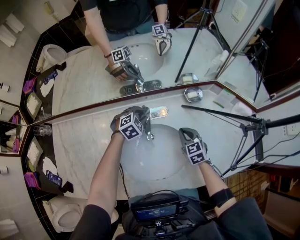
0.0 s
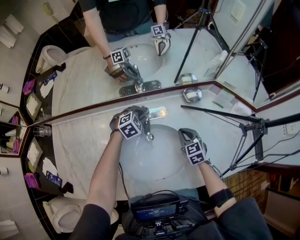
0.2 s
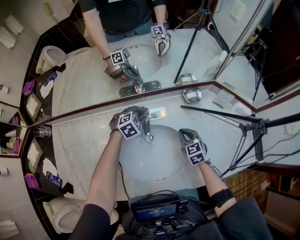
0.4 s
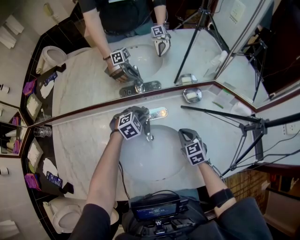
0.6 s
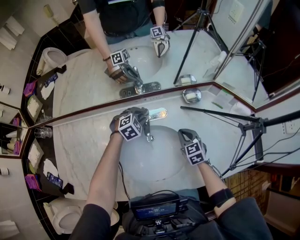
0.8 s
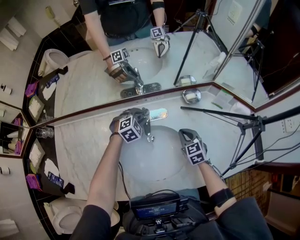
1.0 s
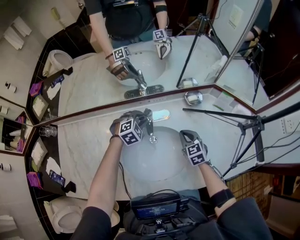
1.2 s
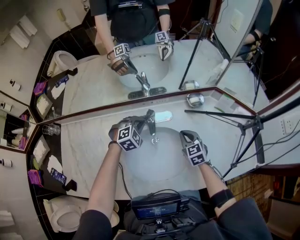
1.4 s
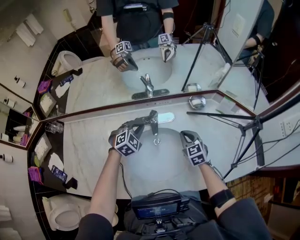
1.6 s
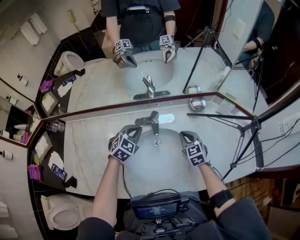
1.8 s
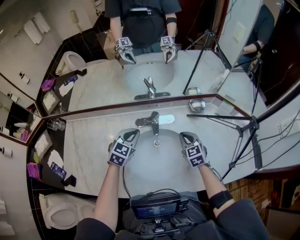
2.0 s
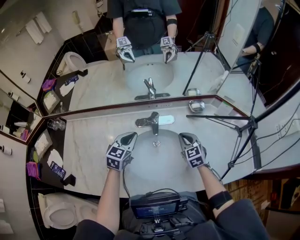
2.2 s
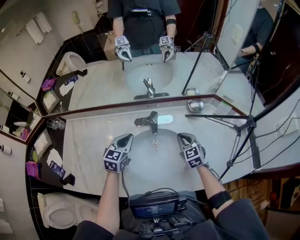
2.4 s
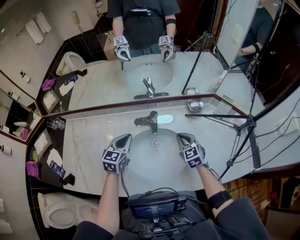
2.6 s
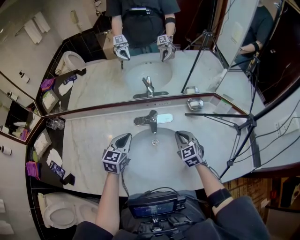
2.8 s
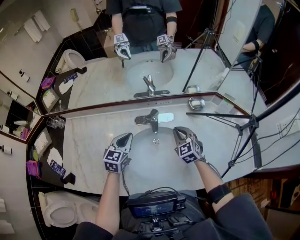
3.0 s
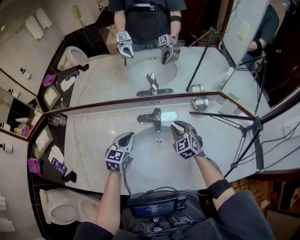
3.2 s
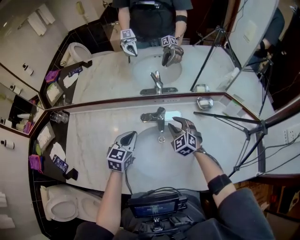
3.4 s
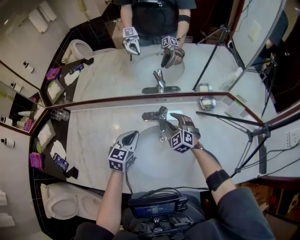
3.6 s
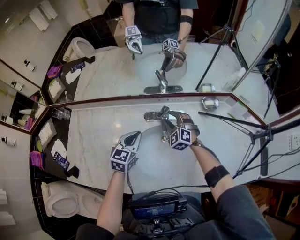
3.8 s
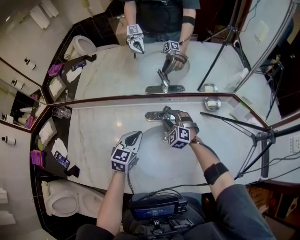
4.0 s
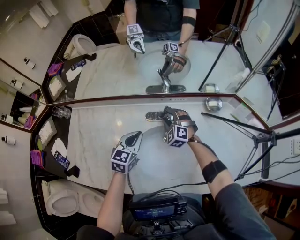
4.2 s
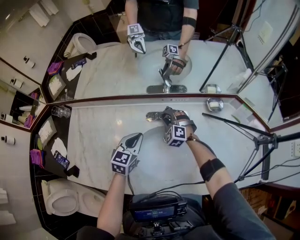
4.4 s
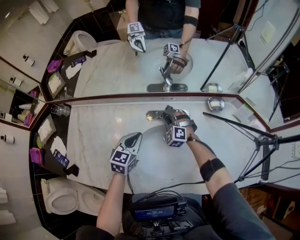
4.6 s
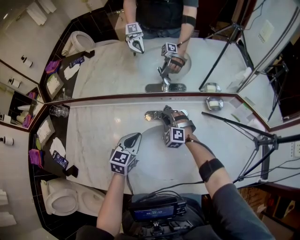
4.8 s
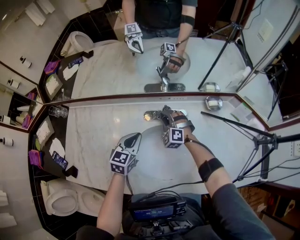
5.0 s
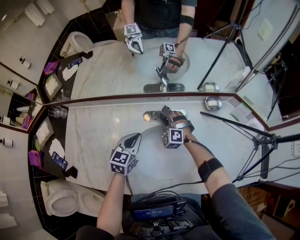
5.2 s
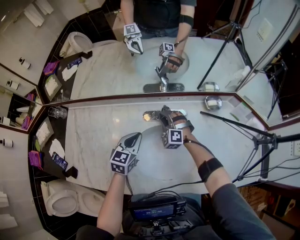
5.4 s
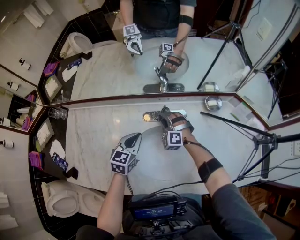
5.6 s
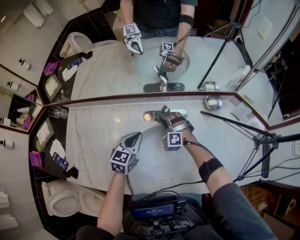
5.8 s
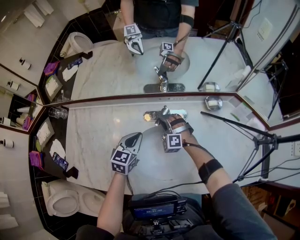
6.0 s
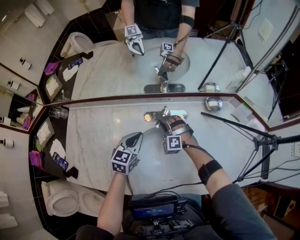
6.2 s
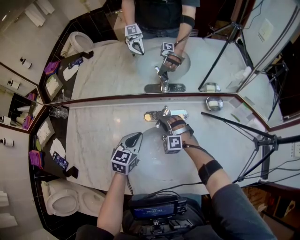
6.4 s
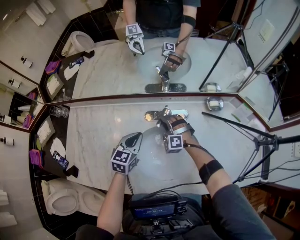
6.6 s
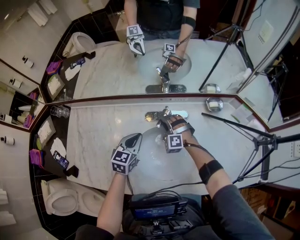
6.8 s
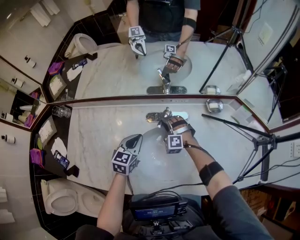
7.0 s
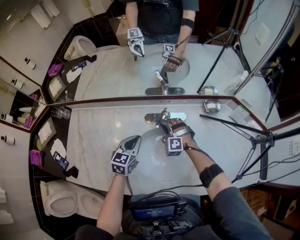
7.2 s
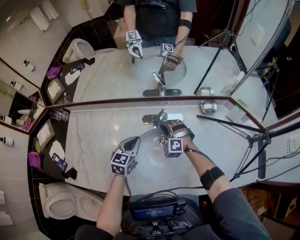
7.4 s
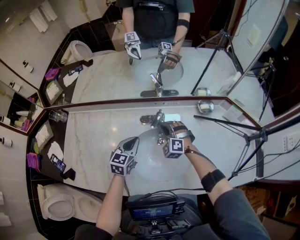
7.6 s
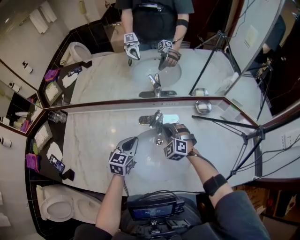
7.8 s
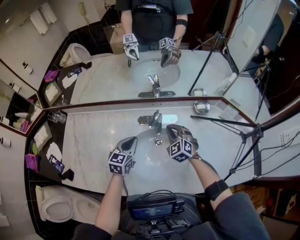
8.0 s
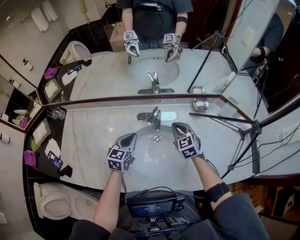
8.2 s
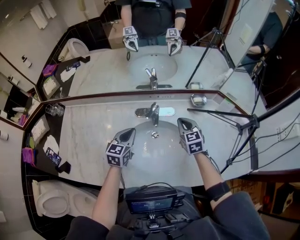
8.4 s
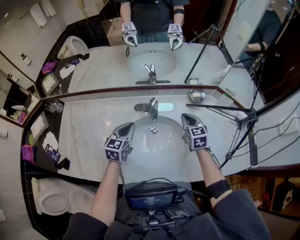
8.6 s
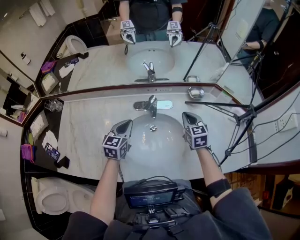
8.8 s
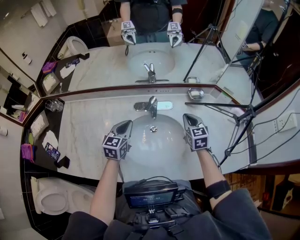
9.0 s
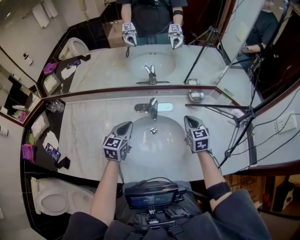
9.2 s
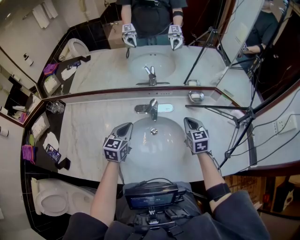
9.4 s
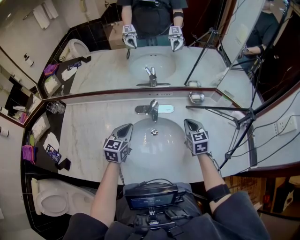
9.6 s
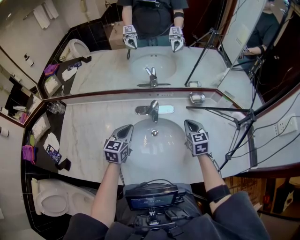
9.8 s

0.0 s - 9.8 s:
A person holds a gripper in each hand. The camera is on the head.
0.0 s - 1.4 s: The left gripper moves upward, approximately 5 cm.
1.4 s - 2.8 s: The left gripper shifts some 15 cm backward, upward and to the left, and twists roughly 50 degrees counterclockwise, seen from behind. Meanwhile the right gripper shifts by roughly 5 cm.
2.8 s - 4.2 s: The right gripper shifts approximately 20 cm to the left, forward and downward, changes its angle by approximately 40 degrees, and opens.
4.2 s - 5.6 s: The right gripper closes.
5.6 s - 7.0 s: The grippers make only small movements.
7.0 s - 8.4 s: The right gripper heads to the right, upward and backward, covering approximately 20 cm, and rotates around the line of its fingers by about 70 degrees, clockwise from behind.
8.4 s - 9.8 s: The right gripper shifts by about 5 cm.

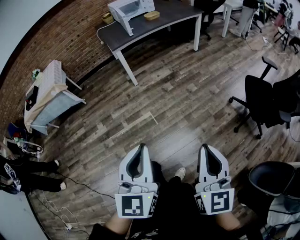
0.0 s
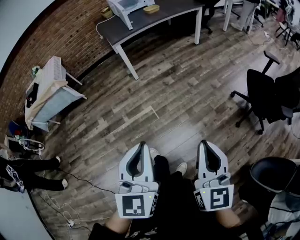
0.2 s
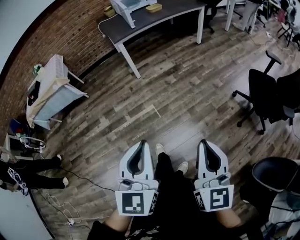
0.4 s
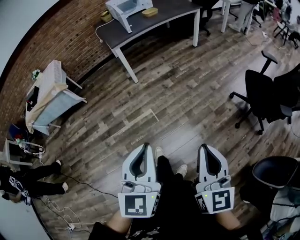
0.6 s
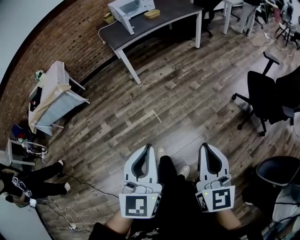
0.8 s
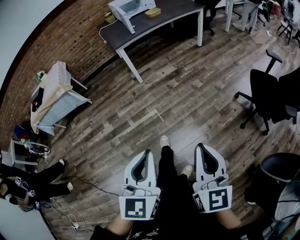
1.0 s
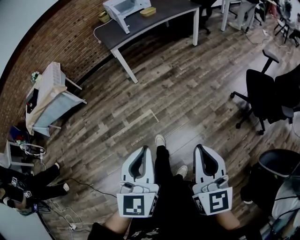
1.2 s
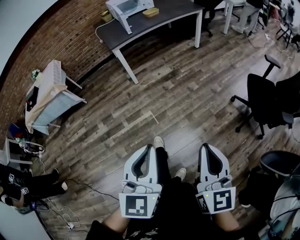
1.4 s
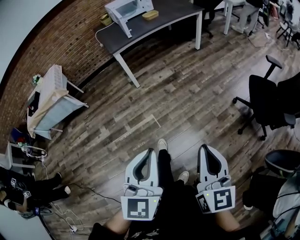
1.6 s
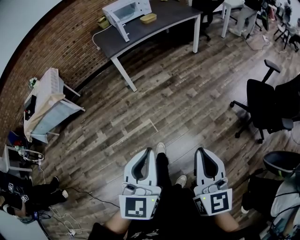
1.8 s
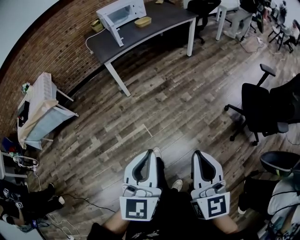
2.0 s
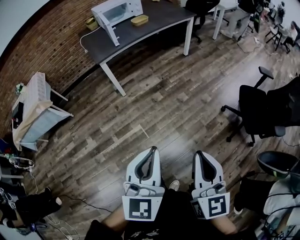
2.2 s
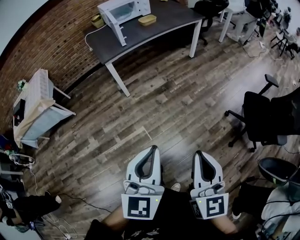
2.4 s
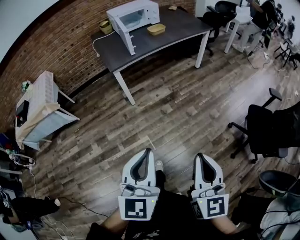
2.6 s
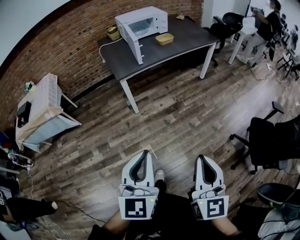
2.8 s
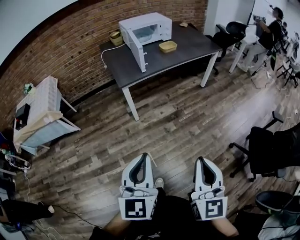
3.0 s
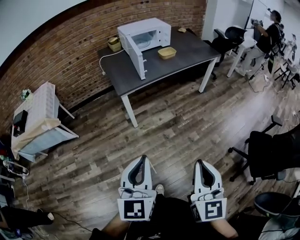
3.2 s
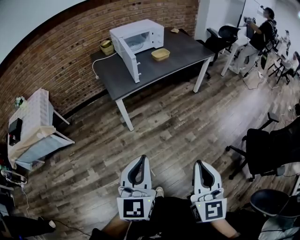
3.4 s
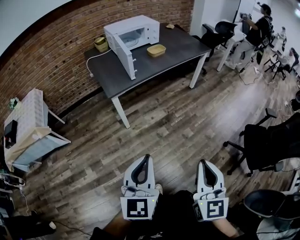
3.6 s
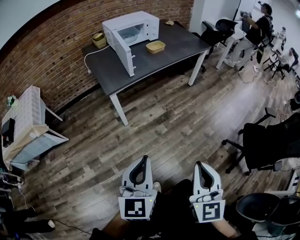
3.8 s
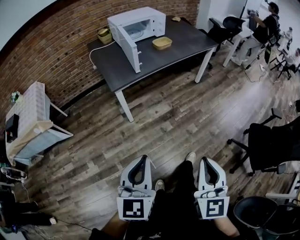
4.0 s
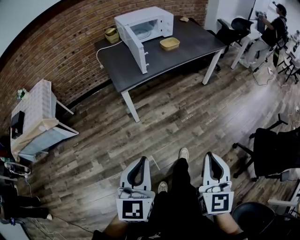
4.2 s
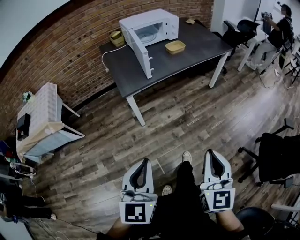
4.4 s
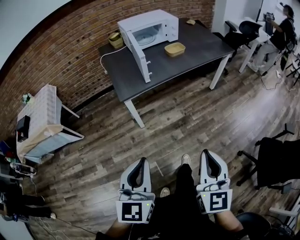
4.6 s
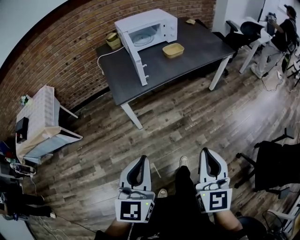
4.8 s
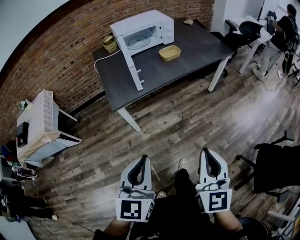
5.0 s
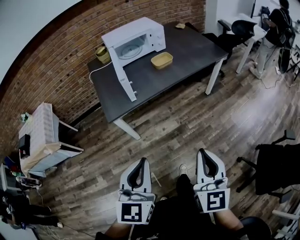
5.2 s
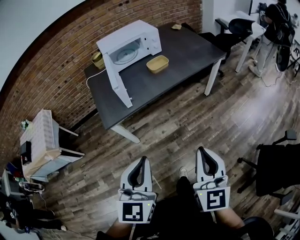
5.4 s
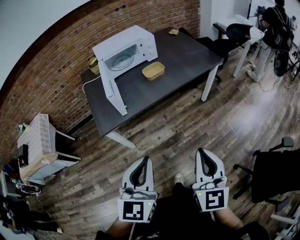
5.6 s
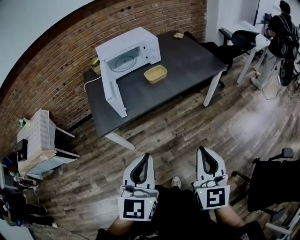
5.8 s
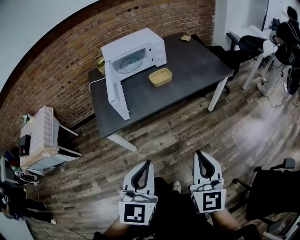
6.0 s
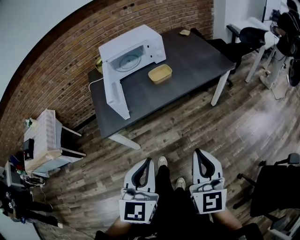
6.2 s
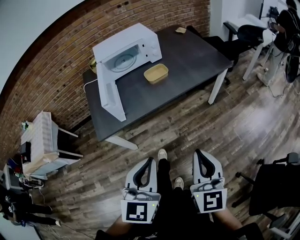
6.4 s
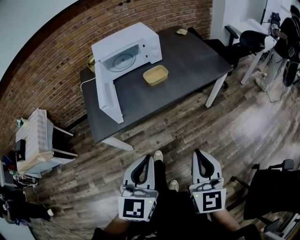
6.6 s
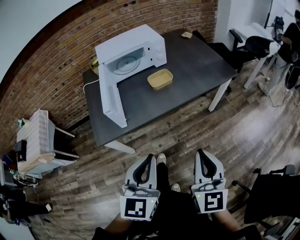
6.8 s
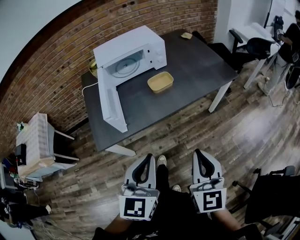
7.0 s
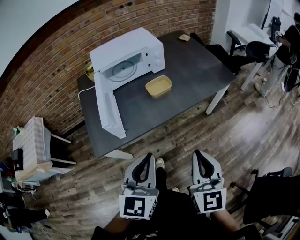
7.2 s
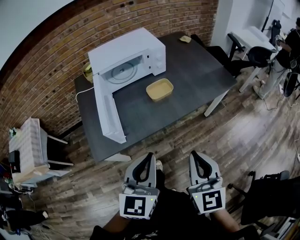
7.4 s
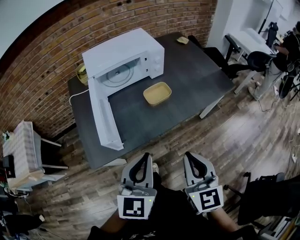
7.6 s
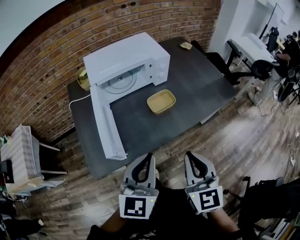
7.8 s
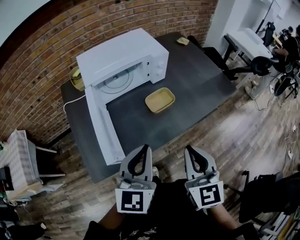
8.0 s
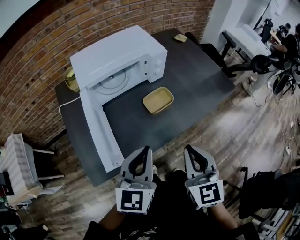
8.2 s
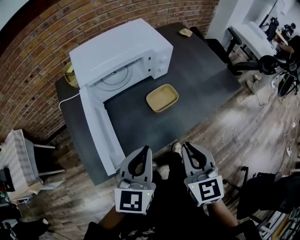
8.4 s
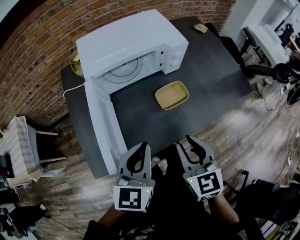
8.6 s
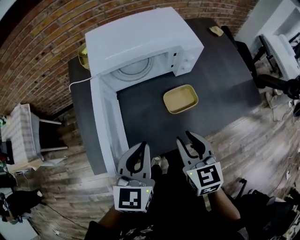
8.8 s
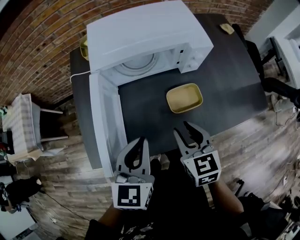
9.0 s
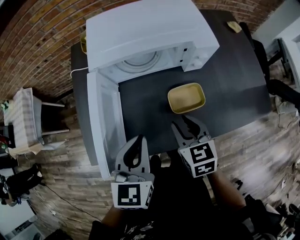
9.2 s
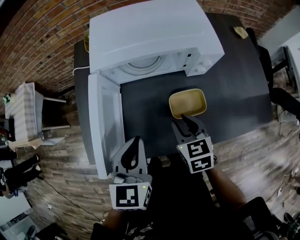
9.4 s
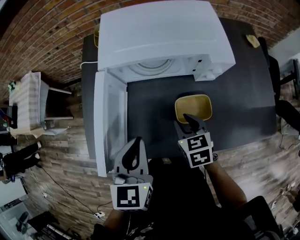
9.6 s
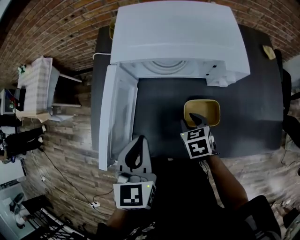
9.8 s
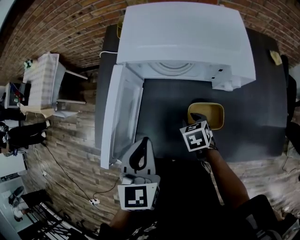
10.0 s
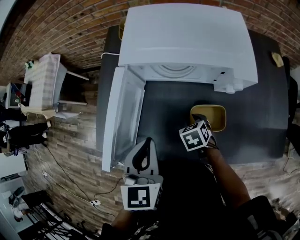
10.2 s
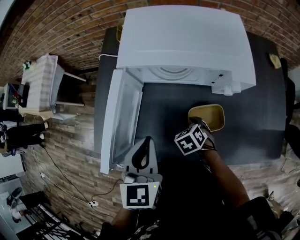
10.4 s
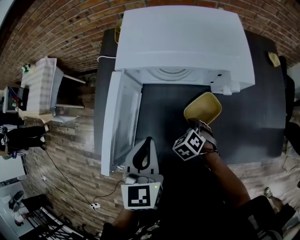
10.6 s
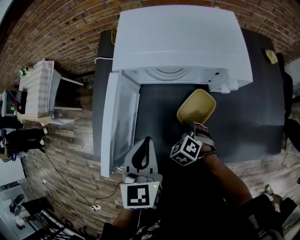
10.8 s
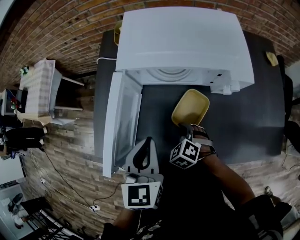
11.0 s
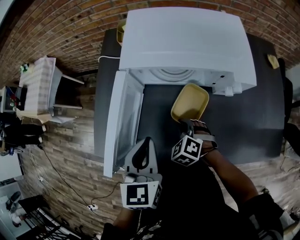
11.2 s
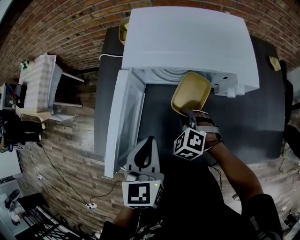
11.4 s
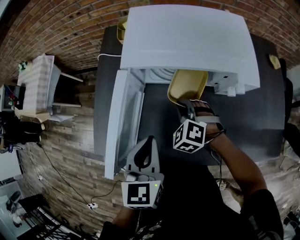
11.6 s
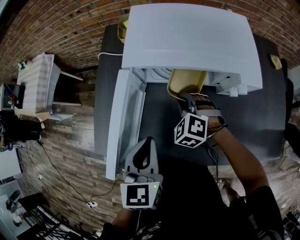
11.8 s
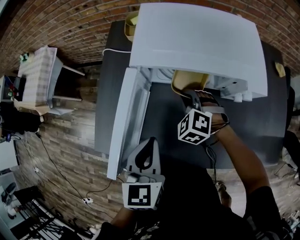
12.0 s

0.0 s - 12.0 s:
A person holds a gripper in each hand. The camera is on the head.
0.0 s - 1.6 s: The right gripper shifts approximately 5 cm forward, while the left gripper ends up roughly 5 cm from where it was.
1.6 s - 3.0 s: Both grippers move forward and to the left, roughly 30 cm.
3.0 s - 4.4 s: Both grippers travel together forward, some 15 cm.
4.4 s - 6.0 s: Both grippers travel together forward and to the right, some 35 cm.
6.0 s - 7.6 s: The left gripper goes approximately 25 cm forward. The right gripper is displaced forward and to the left by some 25 cm.
7.6 s - 9.0 s: The left gripper is displaced forward by some 20 cm, and changes its angle by some 20 degrees. Meanwhile the right gripper travels forward and downward by approximately 30 cm, changes its angle by roughly 30 degrees, and opens its fingers.
9.0 s - 10.4 s: The right gripper shifts some 20 cm downward, and angles its fingers downward, by about 40 degrees. The left gripper shifts by some 5 cm, and swivels about 30 degrees.
10.4 s - 12.0 s: The right gripper goes approximately 15 cm forward, upward and to the left, turns by roughly 40 degrees, and closes its fingers.

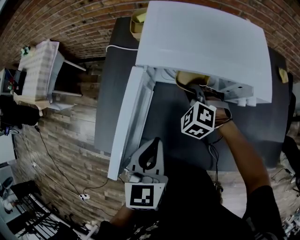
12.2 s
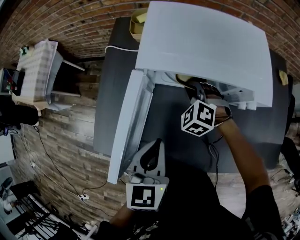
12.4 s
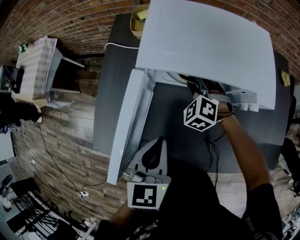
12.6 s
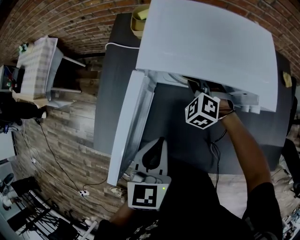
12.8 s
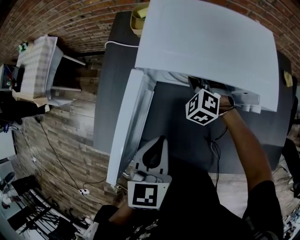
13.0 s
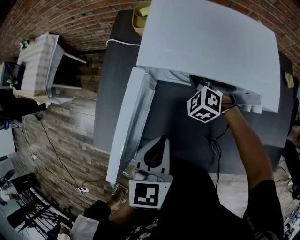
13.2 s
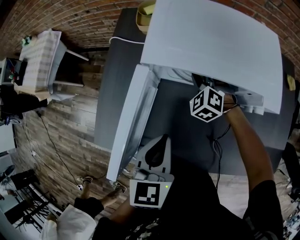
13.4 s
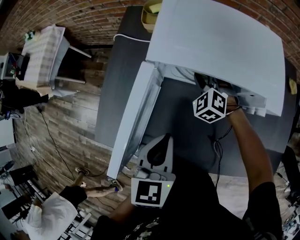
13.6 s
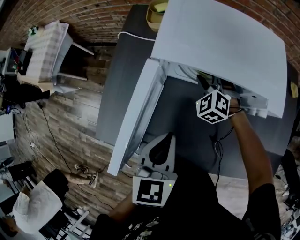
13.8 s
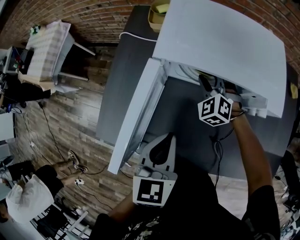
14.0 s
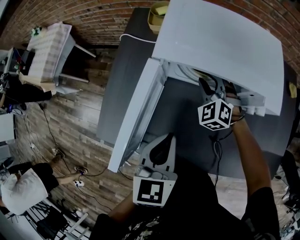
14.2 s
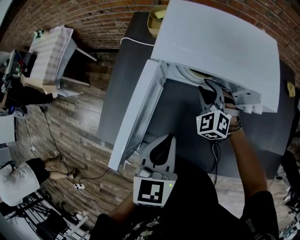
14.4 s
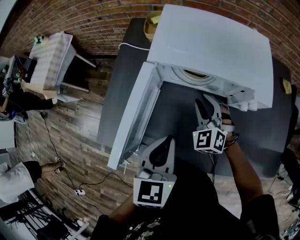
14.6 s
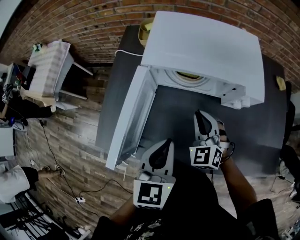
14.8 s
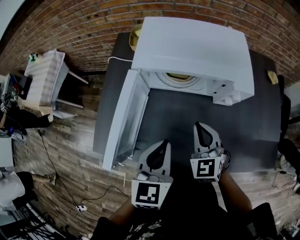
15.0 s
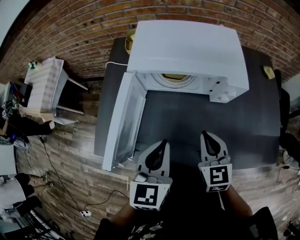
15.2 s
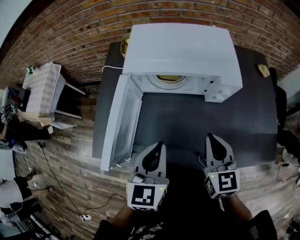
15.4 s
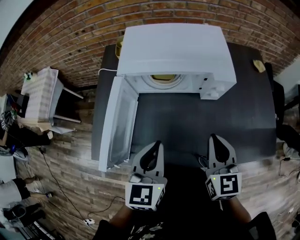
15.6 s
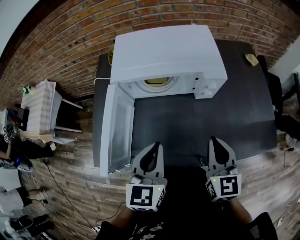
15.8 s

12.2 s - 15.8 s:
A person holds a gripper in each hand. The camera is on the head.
12.2 s - 14.0 s: The right gripper travels forward by roughly 5 cm, and opens its fingers.
14.0 s - 15.8 s: The left gripper travels to the right, backward and upward by about 10 cm; the right gripper heads backward, to the right and upward, covering approximately 35 cm, rotates around the line of its fingers by roughly 60 degrees, clockwise from behind, and closes.
